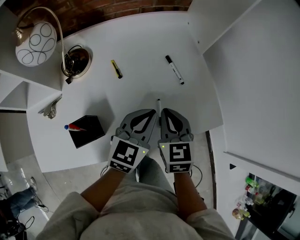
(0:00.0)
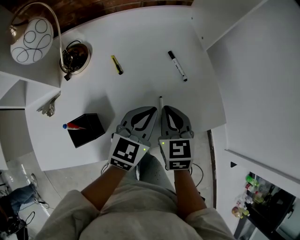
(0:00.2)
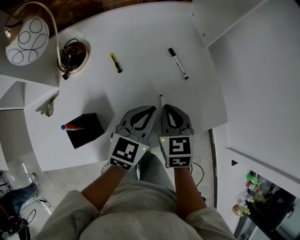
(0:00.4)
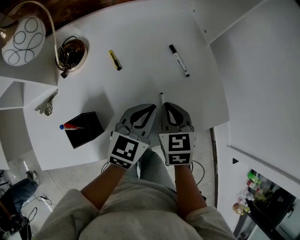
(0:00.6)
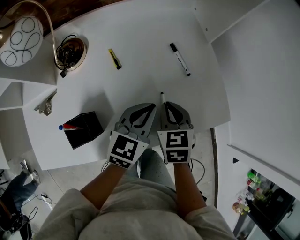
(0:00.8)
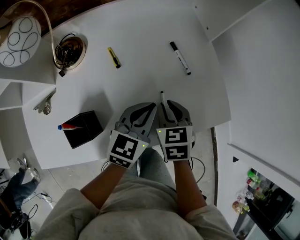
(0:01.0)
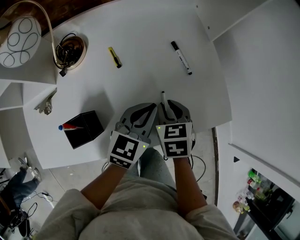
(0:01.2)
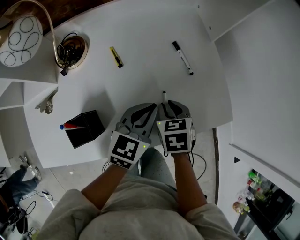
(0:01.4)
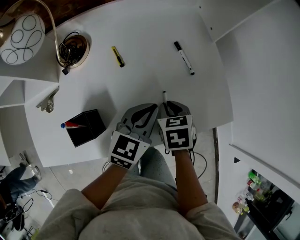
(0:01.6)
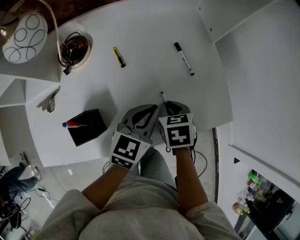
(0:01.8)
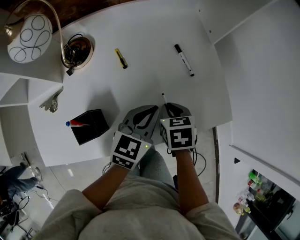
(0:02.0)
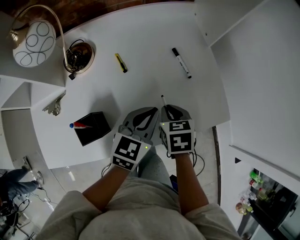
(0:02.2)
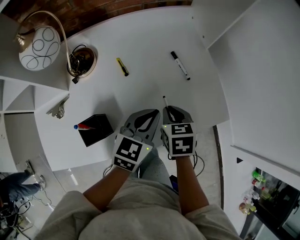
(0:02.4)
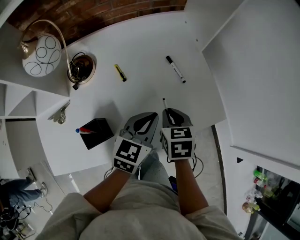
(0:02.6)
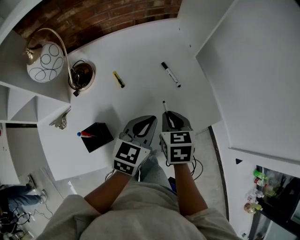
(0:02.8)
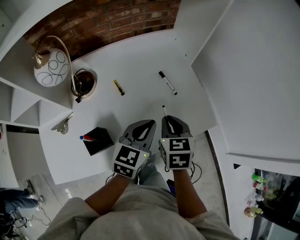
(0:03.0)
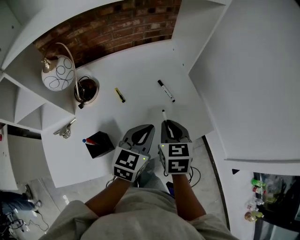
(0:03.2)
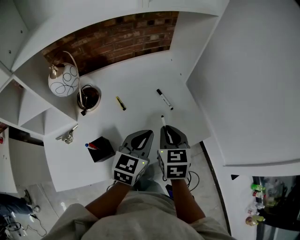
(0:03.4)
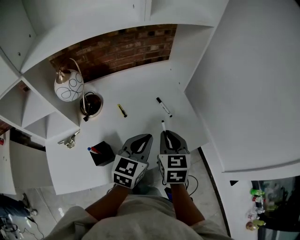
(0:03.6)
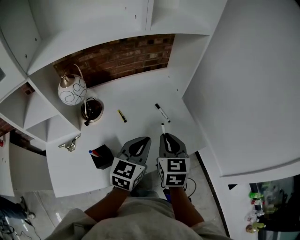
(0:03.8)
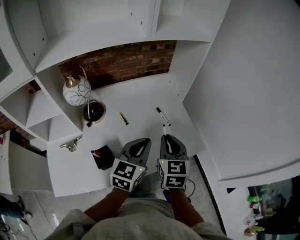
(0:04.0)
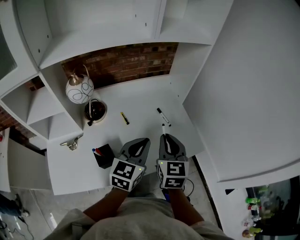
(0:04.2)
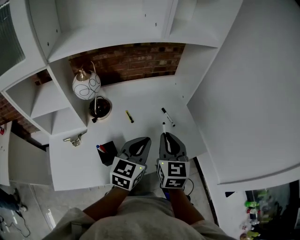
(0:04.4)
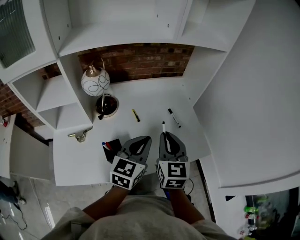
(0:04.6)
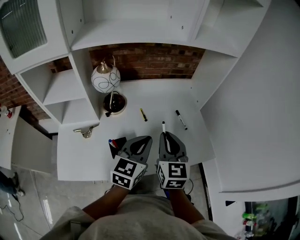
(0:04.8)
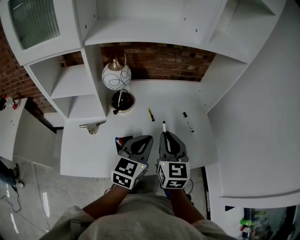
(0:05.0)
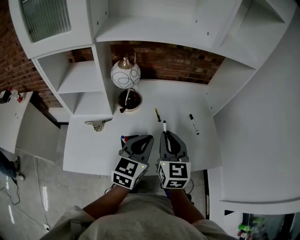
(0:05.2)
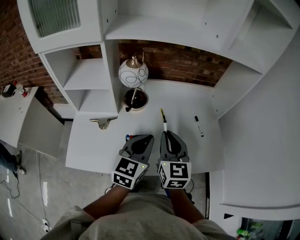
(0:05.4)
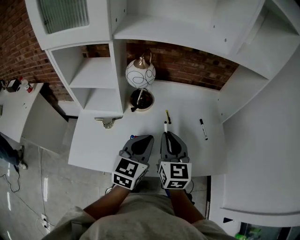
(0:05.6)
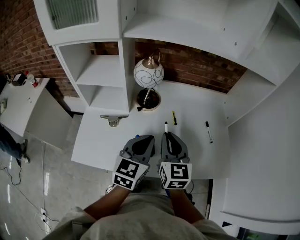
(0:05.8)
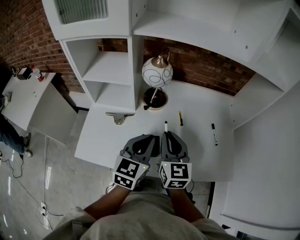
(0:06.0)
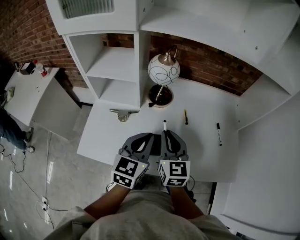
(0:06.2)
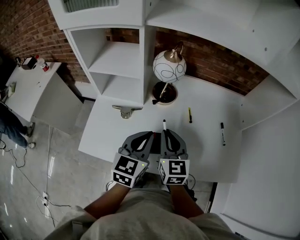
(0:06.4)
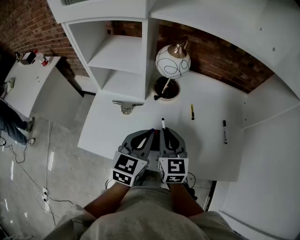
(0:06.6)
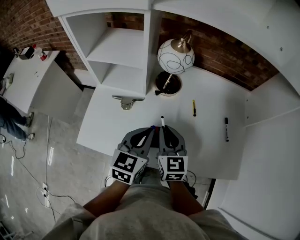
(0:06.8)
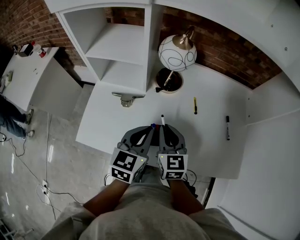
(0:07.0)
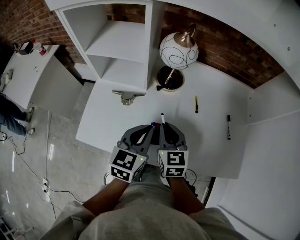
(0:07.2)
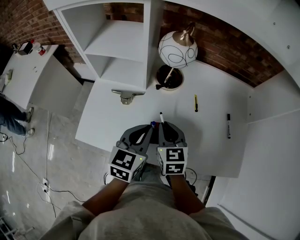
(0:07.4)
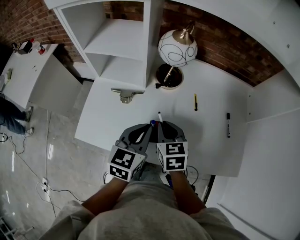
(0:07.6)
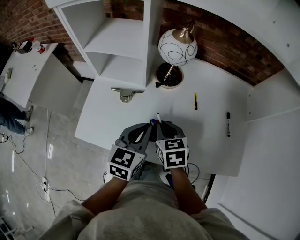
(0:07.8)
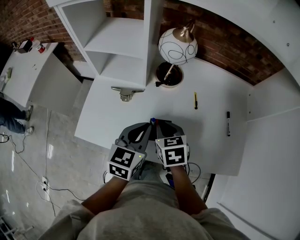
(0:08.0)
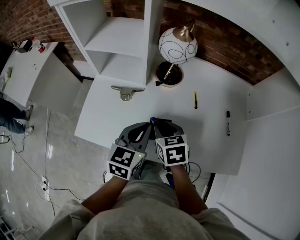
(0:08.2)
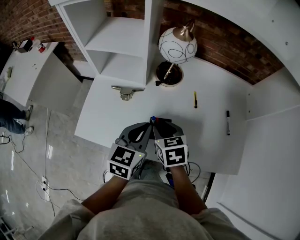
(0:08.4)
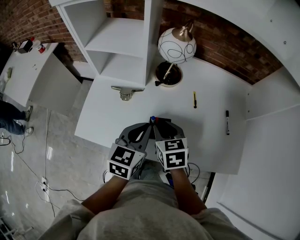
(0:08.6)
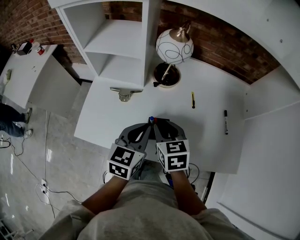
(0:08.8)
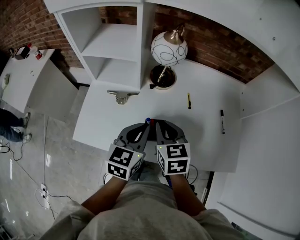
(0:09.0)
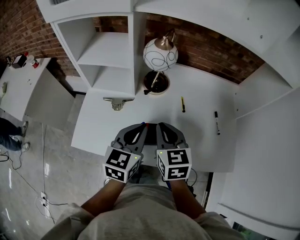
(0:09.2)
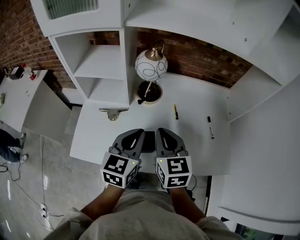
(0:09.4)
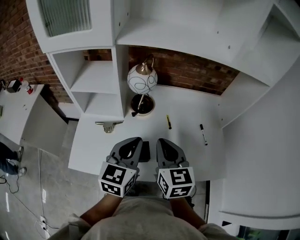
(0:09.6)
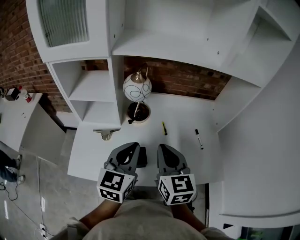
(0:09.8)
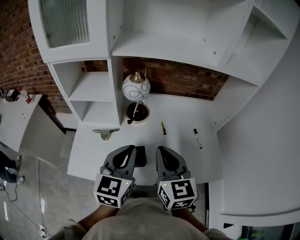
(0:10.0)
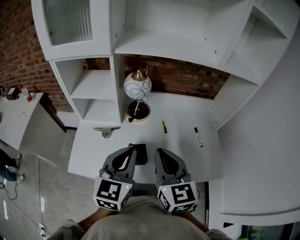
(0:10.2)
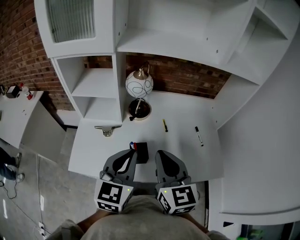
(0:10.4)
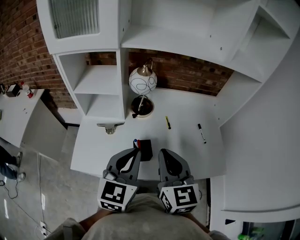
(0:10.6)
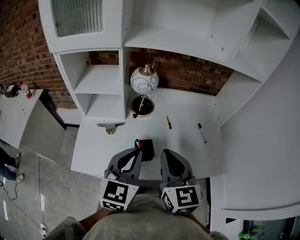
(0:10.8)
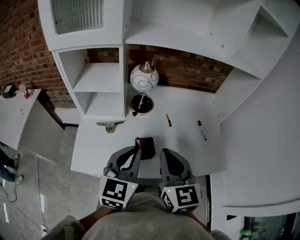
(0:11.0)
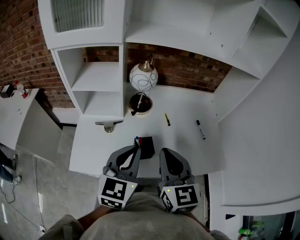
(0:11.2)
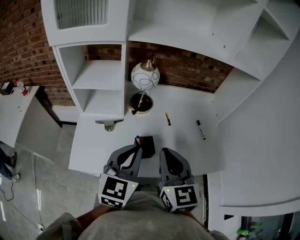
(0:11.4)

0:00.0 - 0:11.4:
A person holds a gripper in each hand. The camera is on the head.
0:00.0 - 0:01.4: The right gripper moves downward, some 10 cm, and swivels roughly 30 degrees. Meanwhile the left gripper ends up about 5 cm from where it was.
0:01.4 - 0:02.8: The two grippers go some 10 cm upward.
0:02.8 - 0:04.2: The two grippers go some 15 cm upward. The right gripper rotates about 30 degrees.
0:04.2 - 0:05.6: Both grippers travel together to the left, roughly 15 cm. The left gripper swivels some 20 degrees. The right gripper swivels roughly 20 degrees.
0:05.6 - 0:07.2: The left gripper heads to the left and downward, covering approximately 10 cm. Meanwhile the right gripper goes some 15 cm downward and to the left, and turns by some 20 degrees.
0:07.2 - 0:08.6: The right gripper opens up.
0:08.6 - 0:10.0: Both grippers travel together upward, some 20 cm. The right gripper tilts its fingers about 30 degrees upward, and closes.
0:10.0 - 0:11.4: The right gripper shifts by approximately 5 cm.

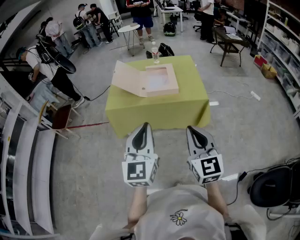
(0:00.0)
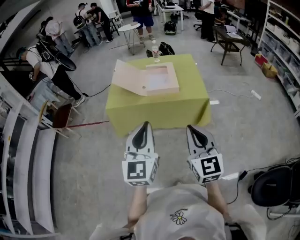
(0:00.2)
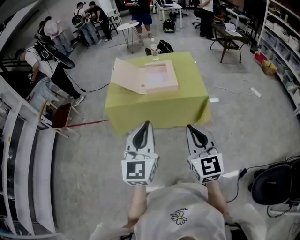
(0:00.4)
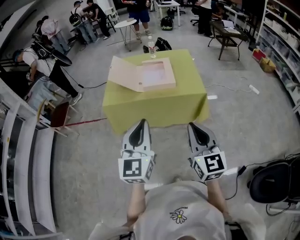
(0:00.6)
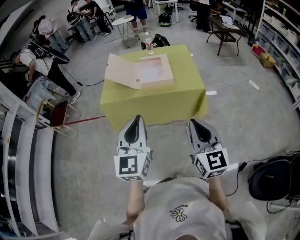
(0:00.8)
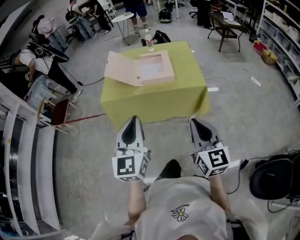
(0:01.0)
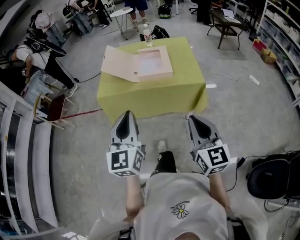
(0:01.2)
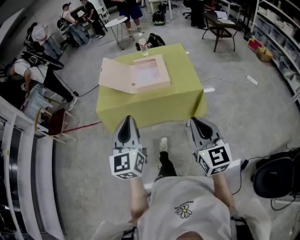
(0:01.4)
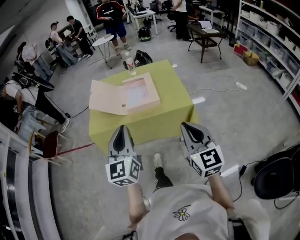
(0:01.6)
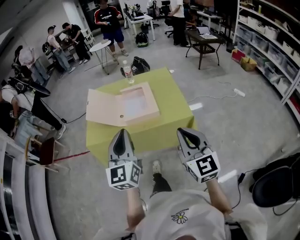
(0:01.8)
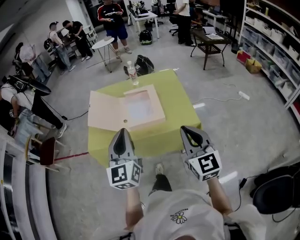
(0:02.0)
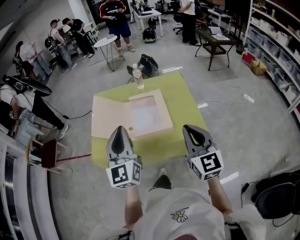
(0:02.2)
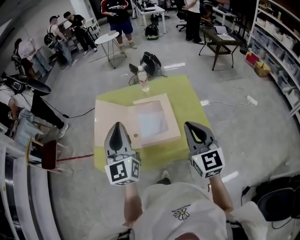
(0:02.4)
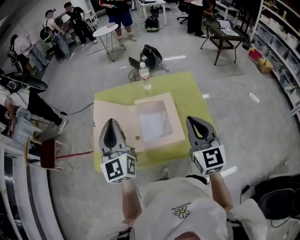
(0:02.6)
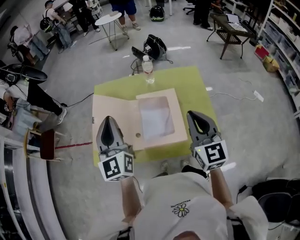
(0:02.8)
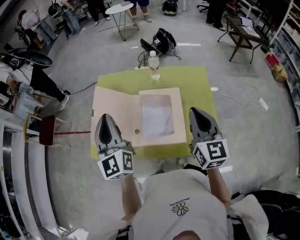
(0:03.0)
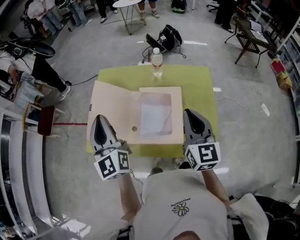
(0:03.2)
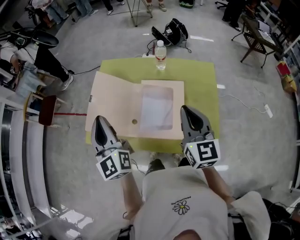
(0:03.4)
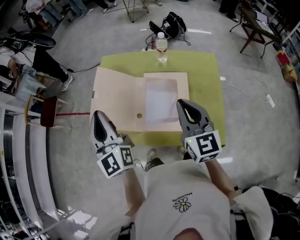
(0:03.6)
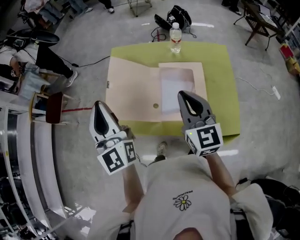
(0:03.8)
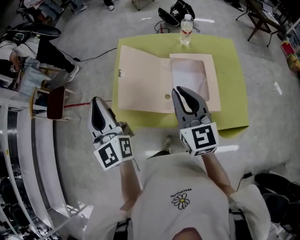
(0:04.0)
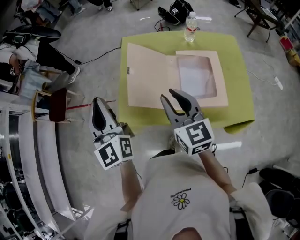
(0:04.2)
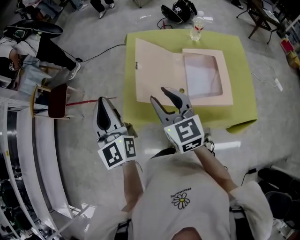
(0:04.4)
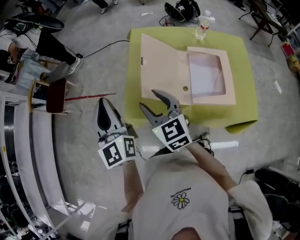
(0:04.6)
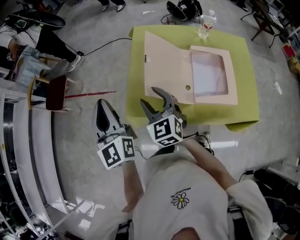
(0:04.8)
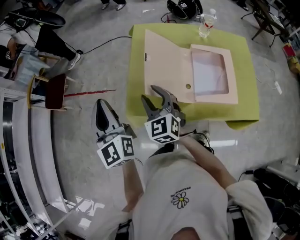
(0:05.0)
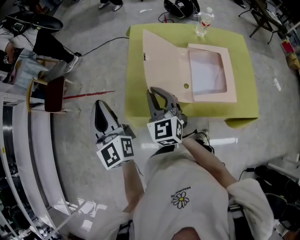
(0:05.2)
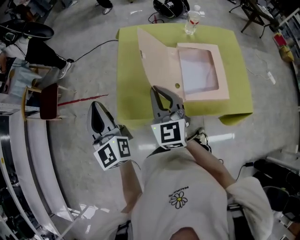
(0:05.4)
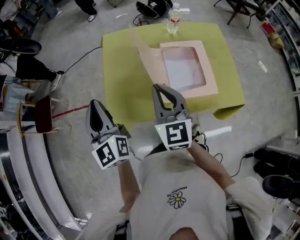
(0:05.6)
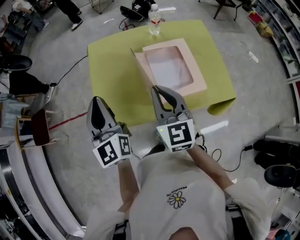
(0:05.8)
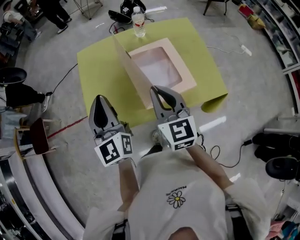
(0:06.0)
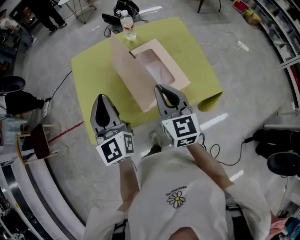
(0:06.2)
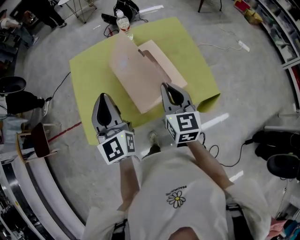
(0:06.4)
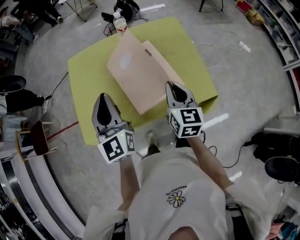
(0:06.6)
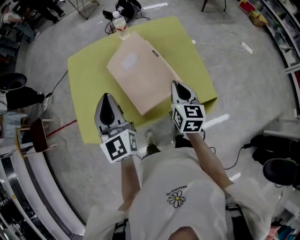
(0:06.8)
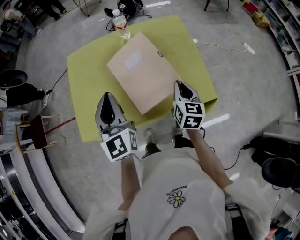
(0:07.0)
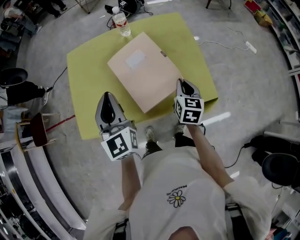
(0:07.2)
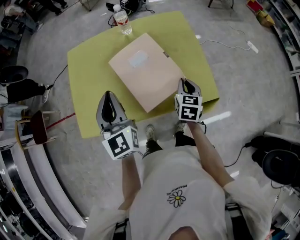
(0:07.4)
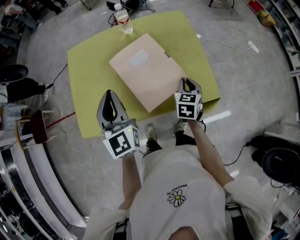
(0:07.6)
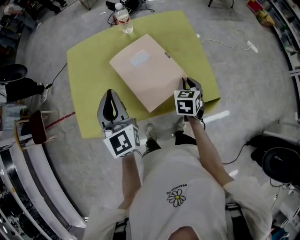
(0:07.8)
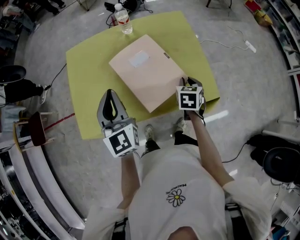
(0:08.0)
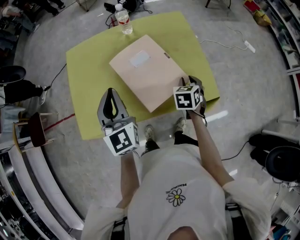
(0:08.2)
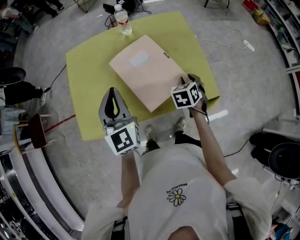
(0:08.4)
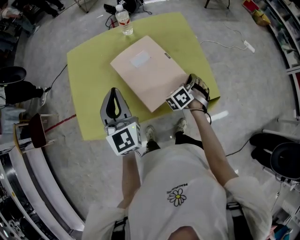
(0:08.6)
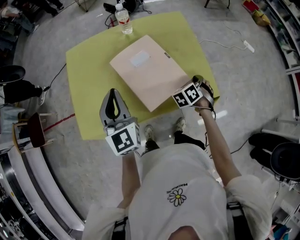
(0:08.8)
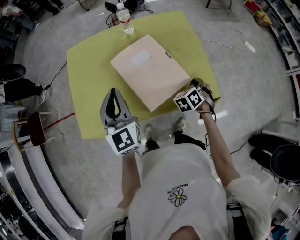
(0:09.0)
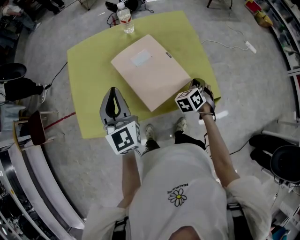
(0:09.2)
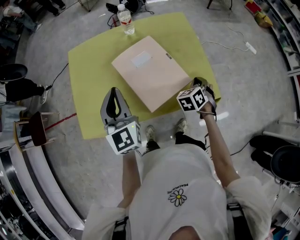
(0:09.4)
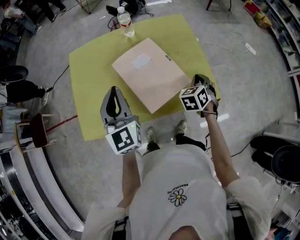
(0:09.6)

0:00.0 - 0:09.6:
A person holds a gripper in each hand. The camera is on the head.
0:00.0 - 0:01.6: The right gripper heads forward and to the right, covering roughly 10 cm, while the left gripper shifts roughly 15 cm forward.
0:01.6 - 0:03.2: The two grippers go about 40 cm forward. The left gripper turns by approximately 30 degrees.
0:03.2 - 0:04.8: The left gripper travels to the left by roughly 30 cm. Meanwhile the right gripper is displaced to the left by some 40 cm, rotates some 30 degrees, and opens.
0:04.8 - 0:06.4: The left gripper changes place by roughly 30 cm, and swivels roughly 30 degrees. Meanwhile the right gripper changes place by some 35 cm, changes its angle by approximately 40 degrees, and closes.
0:06.4 - 0:08.0: The left gripper shifts by about 5 cm; the right gripper is displaced downward and to the right by approximately 20 cm, and tilts its fingers some 30 degrees downward.
0:08.0 - 0:09.6: The right gripper changes its angle by some 30 degrees.

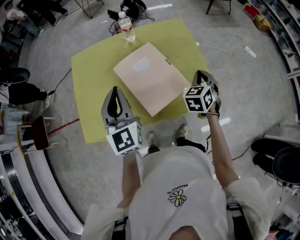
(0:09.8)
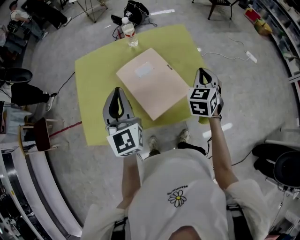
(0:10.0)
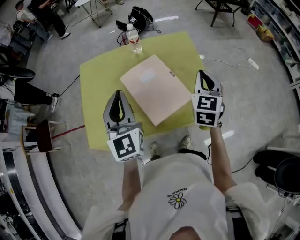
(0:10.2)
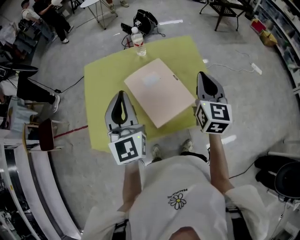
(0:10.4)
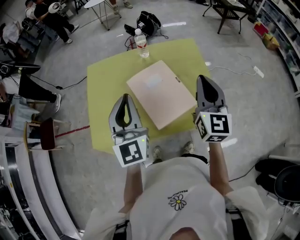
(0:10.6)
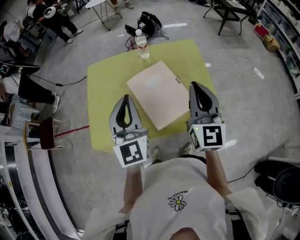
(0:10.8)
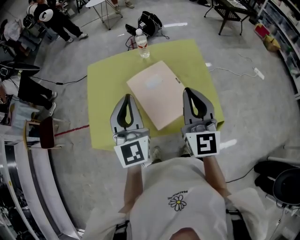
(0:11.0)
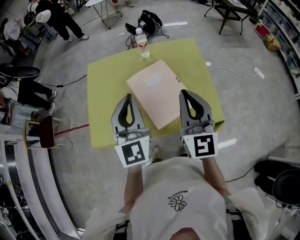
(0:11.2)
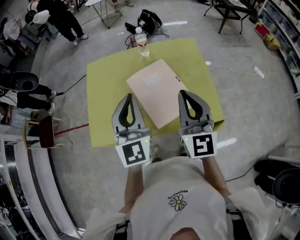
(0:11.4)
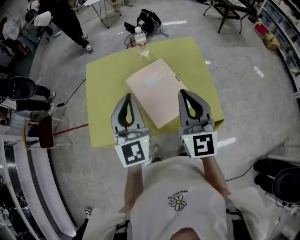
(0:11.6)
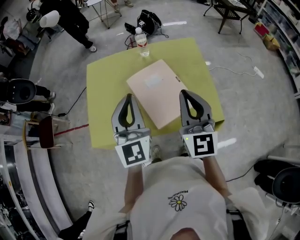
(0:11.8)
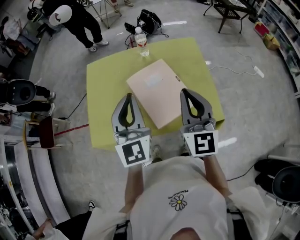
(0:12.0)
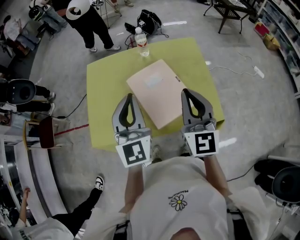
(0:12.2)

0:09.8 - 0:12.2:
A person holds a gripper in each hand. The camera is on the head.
0:09.8 - 0:11.0: The left gripper shifts roughly 5 cm upward; the right gripper goes approximately 20 cm upward and to the left, and tilts its fingers some 40 degrees upward.
0:11.0 - 0:12.2: The grippers stay close to where they were, moving slightly.
